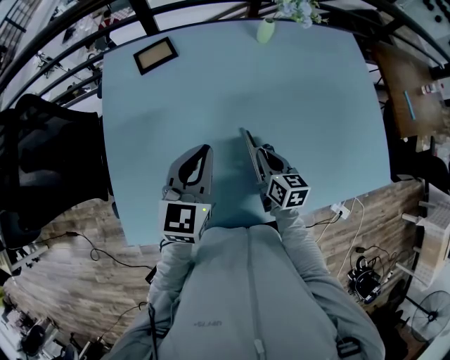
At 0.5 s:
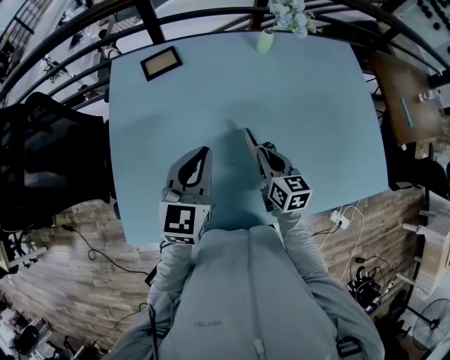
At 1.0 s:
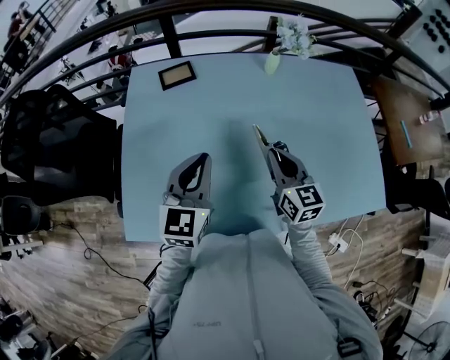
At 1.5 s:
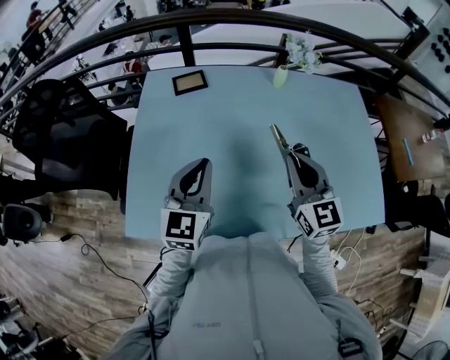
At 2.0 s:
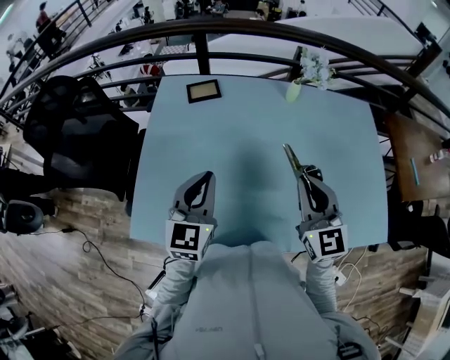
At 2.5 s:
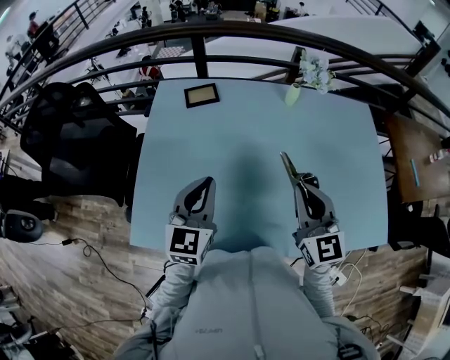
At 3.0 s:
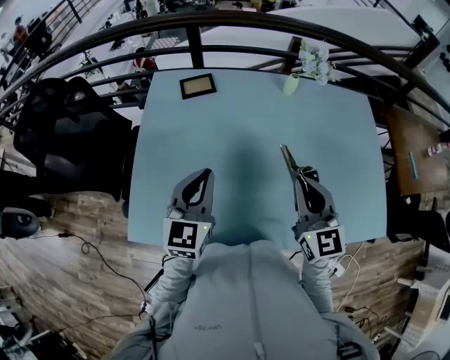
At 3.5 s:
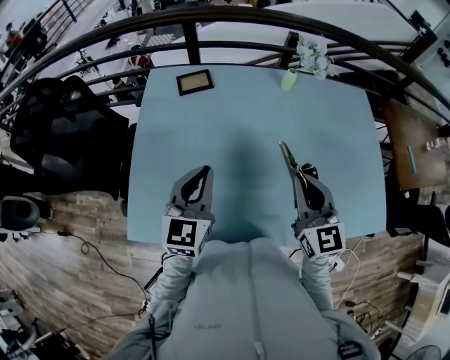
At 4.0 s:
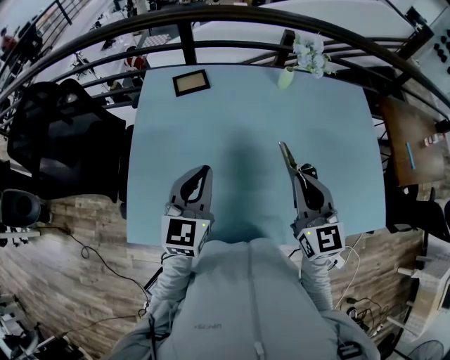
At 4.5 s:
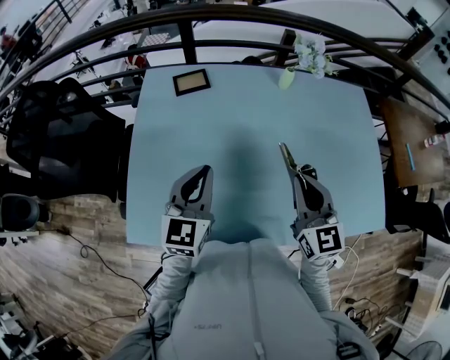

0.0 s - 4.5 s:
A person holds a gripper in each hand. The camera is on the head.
0.0 s - 2.0 s: The left gripper is displaced upward and backward by about 10 cm. The right gripper is displaced upward by approximately 25 cm, and rotates around the line of its fingers by approximately 40 degrees, counterclockwise from behind.
2.0 s - 4.5 s: The grippers make only small movements.

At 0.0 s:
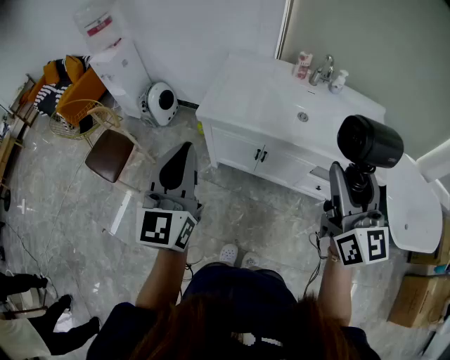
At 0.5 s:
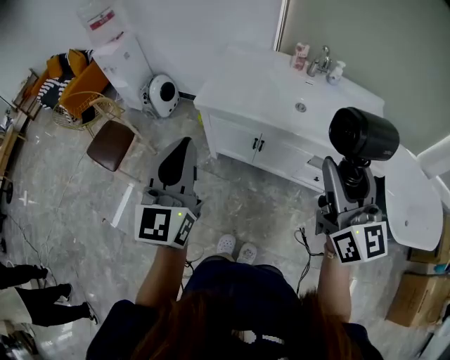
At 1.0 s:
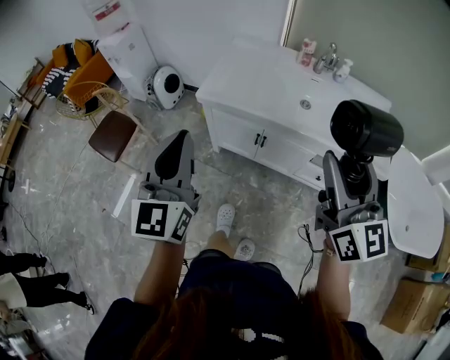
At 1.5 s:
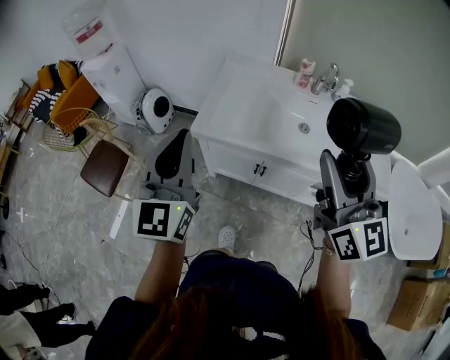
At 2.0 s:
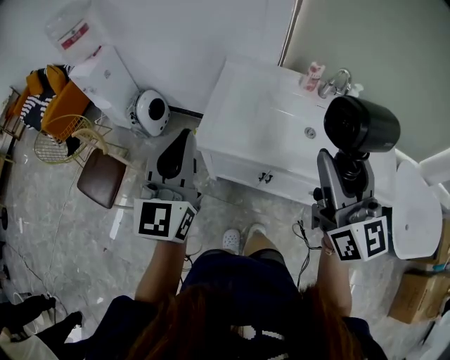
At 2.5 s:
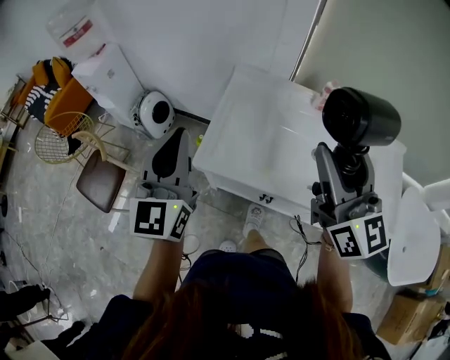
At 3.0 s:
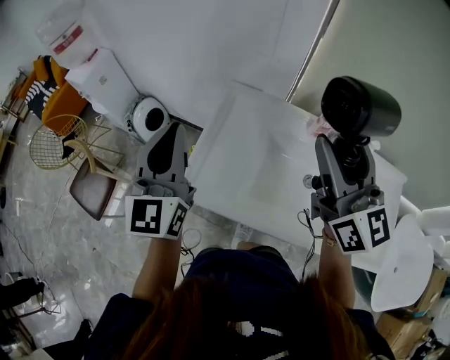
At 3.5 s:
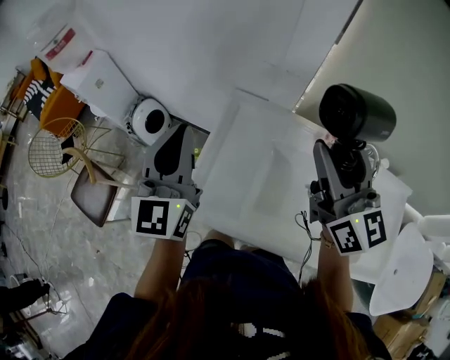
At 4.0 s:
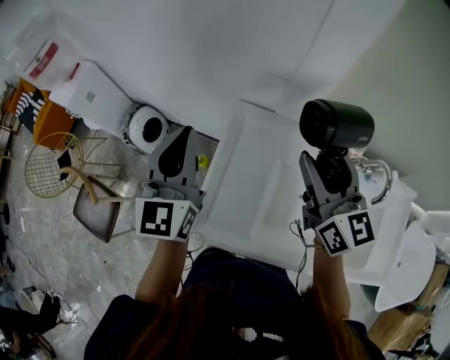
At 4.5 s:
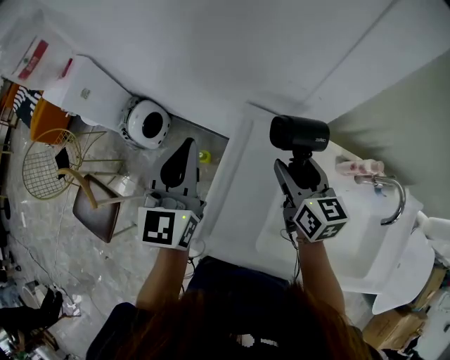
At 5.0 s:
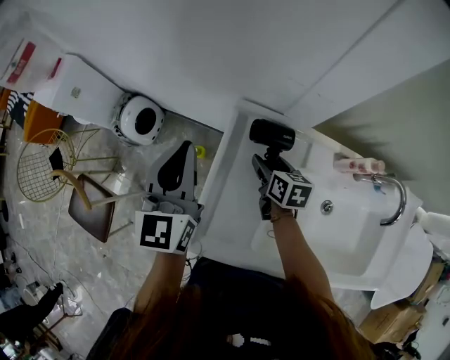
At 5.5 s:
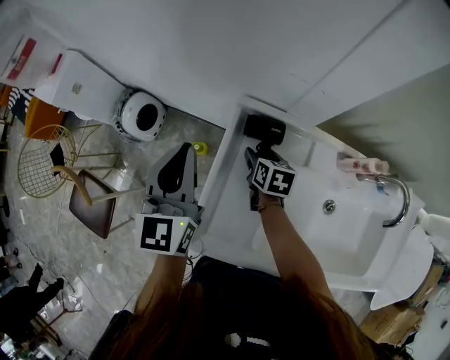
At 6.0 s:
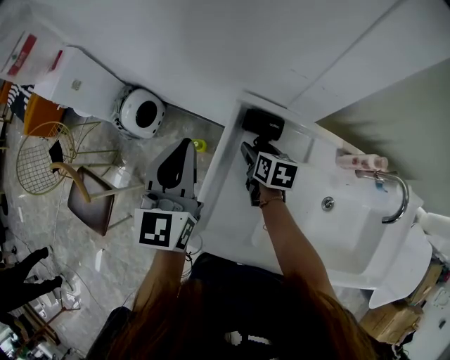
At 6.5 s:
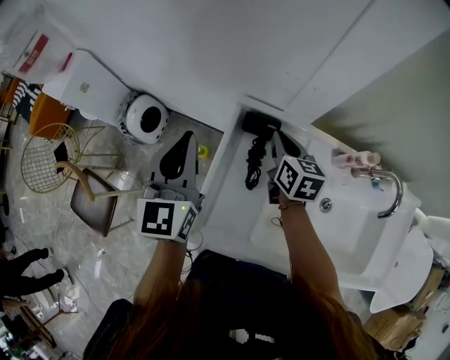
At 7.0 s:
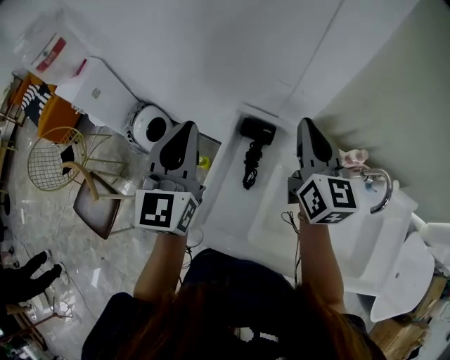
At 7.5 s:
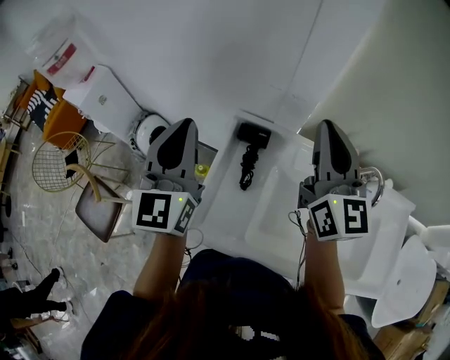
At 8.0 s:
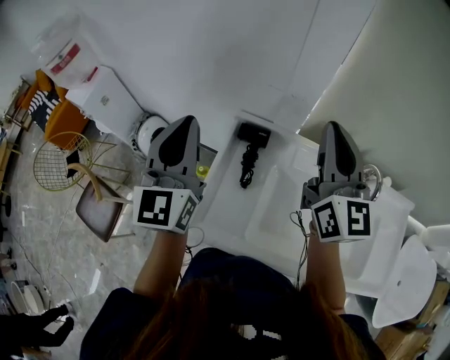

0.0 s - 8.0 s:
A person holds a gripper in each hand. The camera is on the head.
0.0 s - 2.0 s: Both grippers move forward, about 25 cm.
2.0 s - 4.0 s: The two grippers travel together, forward, approximately 50 cm.
4.0 s - 6.0 s: The left gripper heads downward and forward, covering approximately 10 cm; the right gripper moves downward, some 35 cm, and tips its fingers downward by some 40 degrees.
6.0 s - 8.0 s: The right gripper heads upward, covering roughly 40 cm, tilts its fingers about 60 degrees upward, and closes up. Meanwhile the left gripper shifts about 20 cm upward and backward.

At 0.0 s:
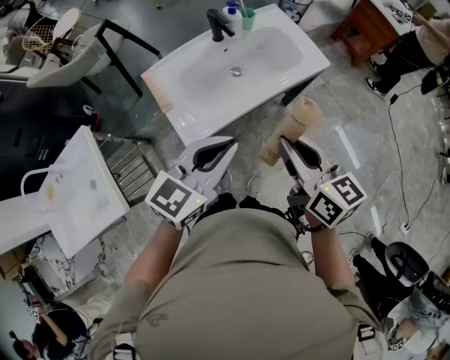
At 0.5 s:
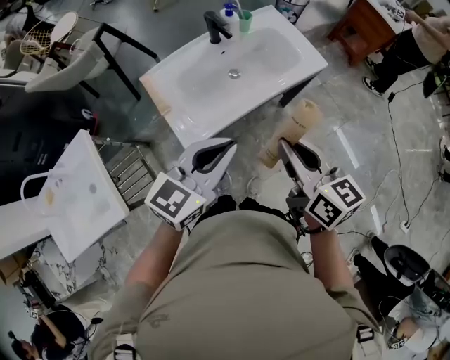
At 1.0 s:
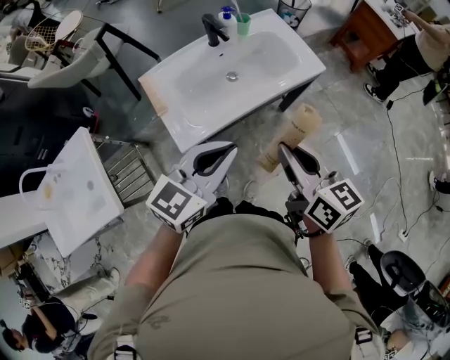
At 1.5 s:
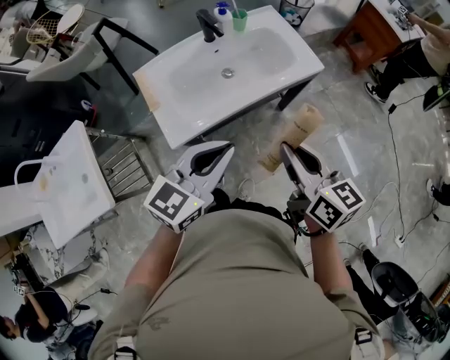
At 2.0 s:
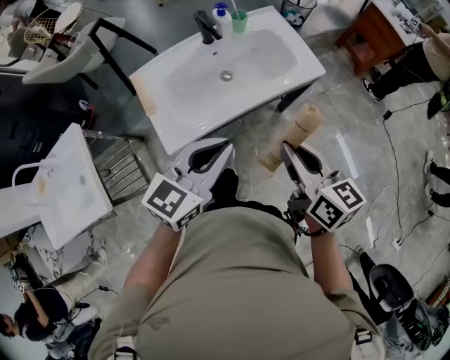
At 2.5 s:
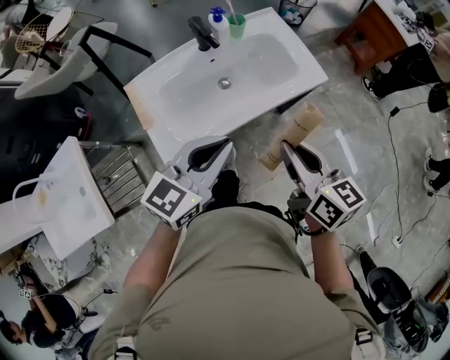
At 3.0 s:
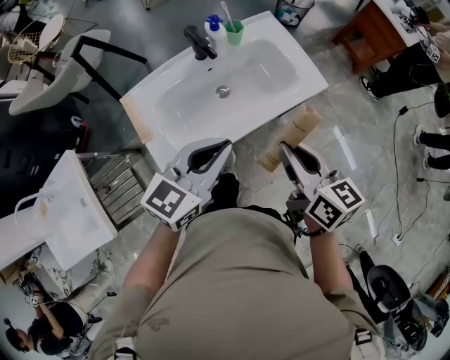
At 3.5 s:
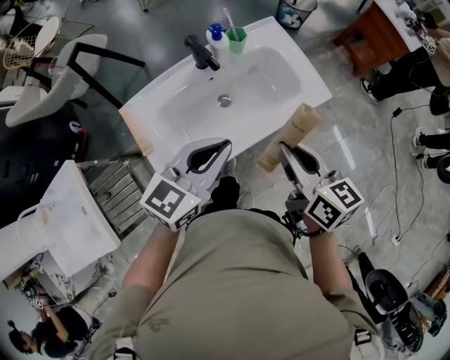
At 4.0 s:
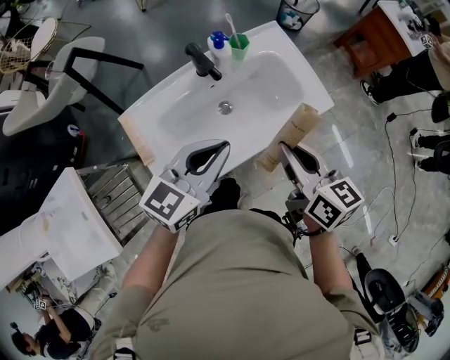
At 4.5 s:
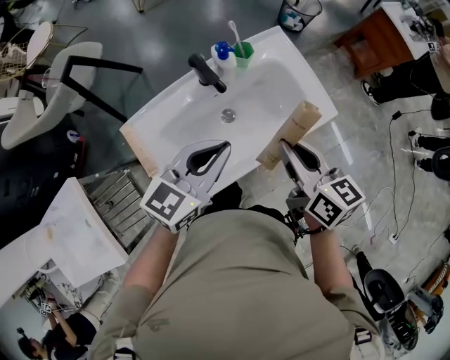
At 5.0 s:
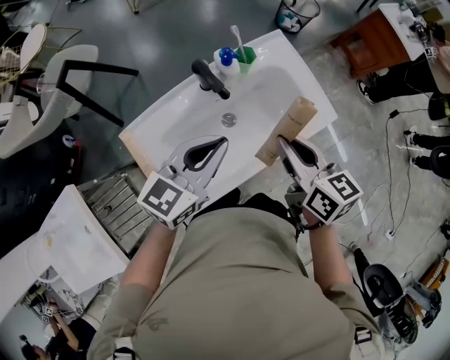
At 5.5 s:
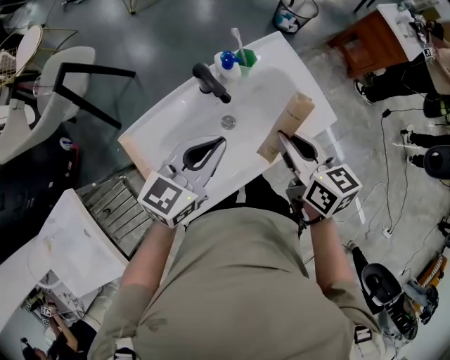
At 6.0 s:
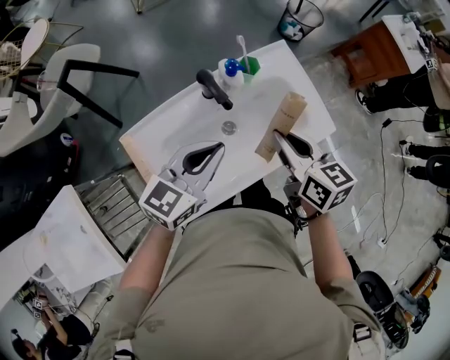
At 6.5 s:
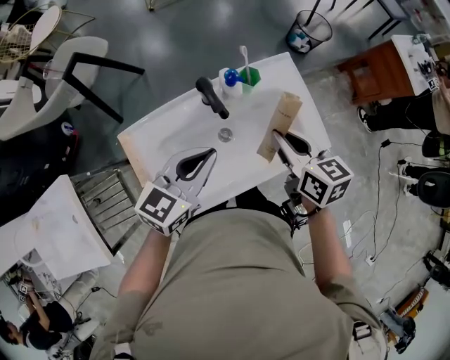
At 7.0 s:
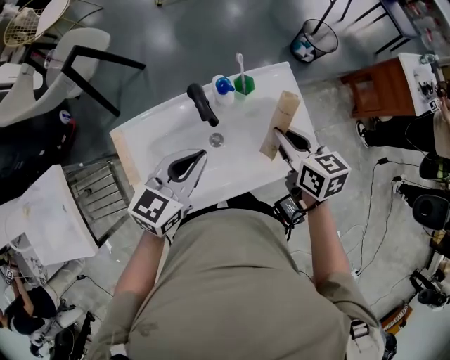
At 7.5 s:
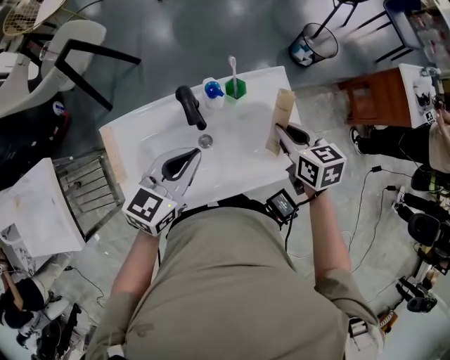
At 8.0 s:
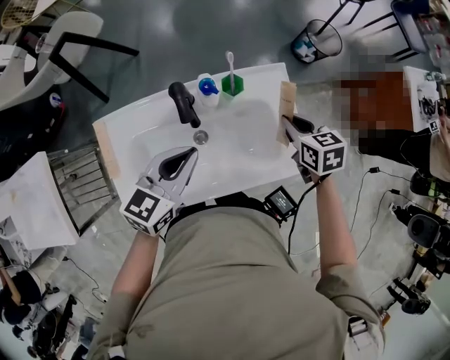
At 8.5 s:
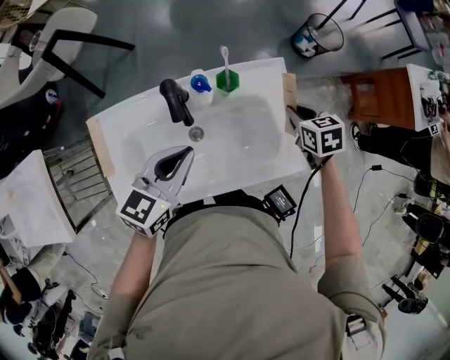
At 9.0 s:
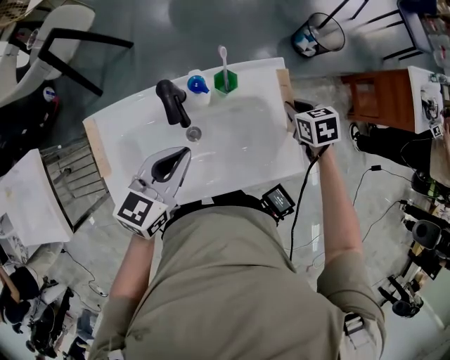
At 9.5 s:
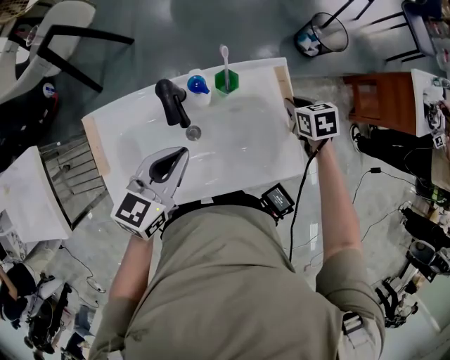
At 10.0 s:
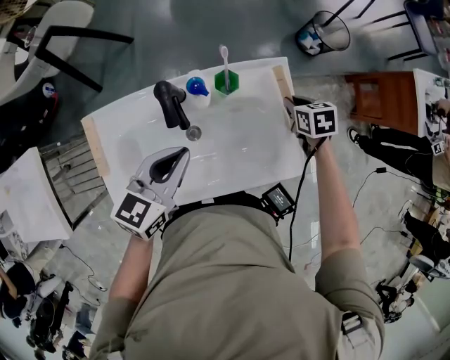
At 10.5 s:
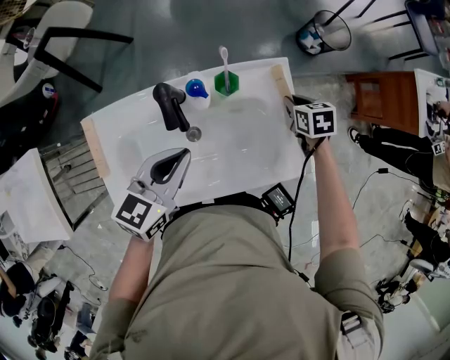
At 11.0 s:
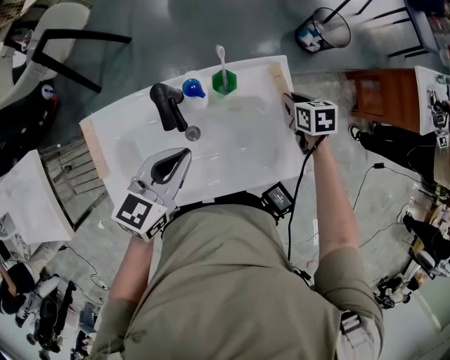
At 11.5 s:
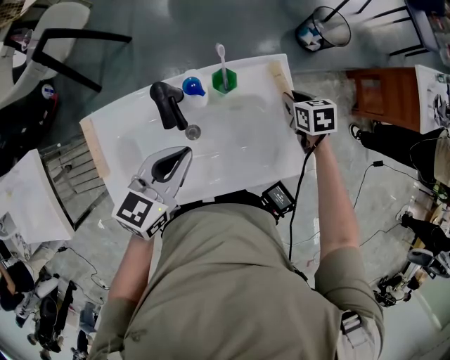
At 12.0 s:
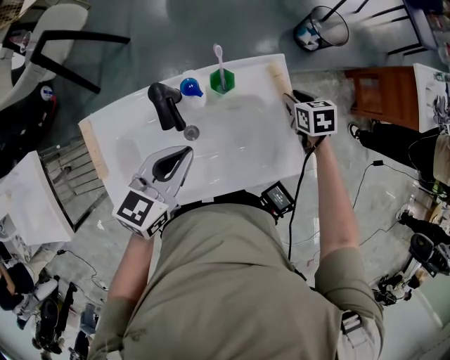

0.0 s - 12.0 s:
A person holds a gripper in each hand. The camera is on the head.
0.0 s - 2.0 s: The grippers both shift to the right by some 5 cm.
2.0 s - 4.0 s: Both grippers move forward, approximately 20 cm.
4.0 s - 6.0 s: The two grippers go some 10 cm forward and to the left.
6.0 s - 8.0 s: The left gripper changes place by approximately 5 cm, and turns by approximately 20 degrees, while the right gripper is displaced forward, to the right and downward by roughly 20 cm, and changes its angle by approximately 30 degrees.
8.0 s - 10.0 s: The right gripper shifts approximately 15 cm downward and forward.
10.0 s - 12.0 s: The grippers stay close to where they were, moving slightly.

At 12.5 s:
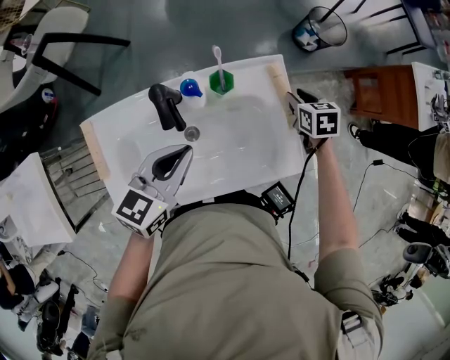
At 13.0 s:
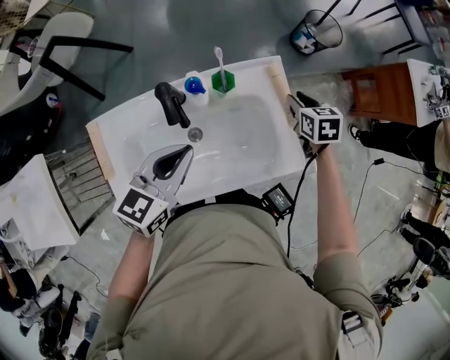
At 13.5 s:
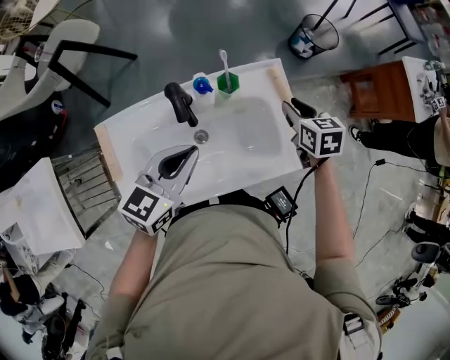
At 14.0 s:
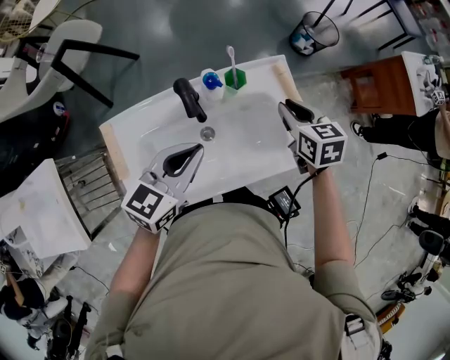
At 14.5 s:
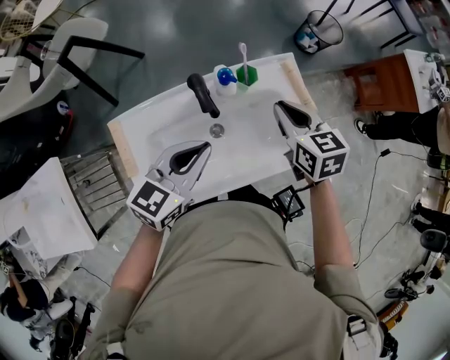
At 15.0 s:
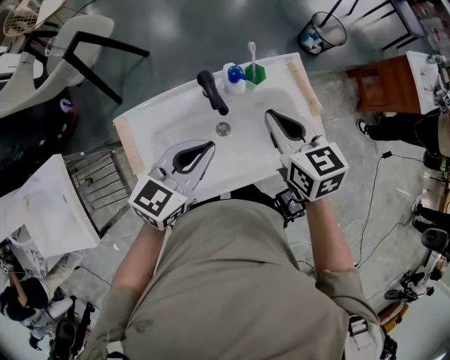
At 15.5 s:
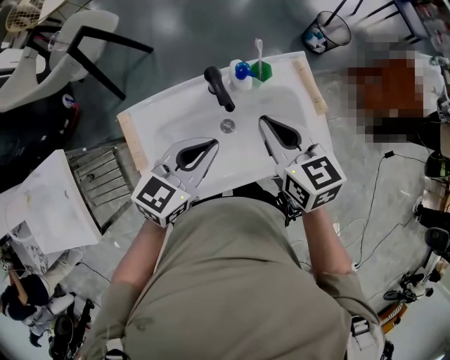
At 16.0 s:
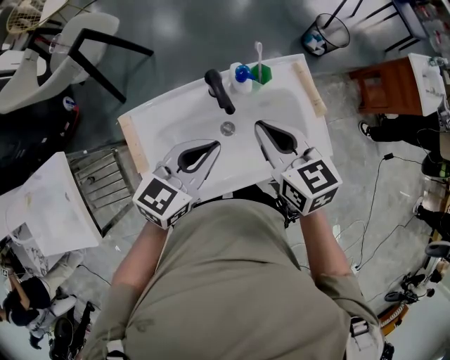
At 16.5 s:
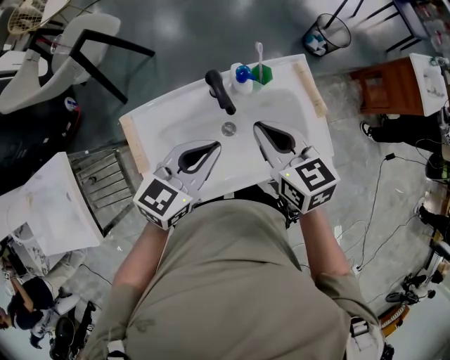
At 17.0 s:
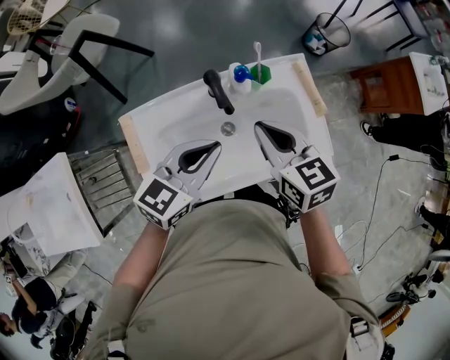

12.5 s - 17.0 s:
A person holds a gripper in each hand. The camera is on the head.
12.5 s - 14.5 s: The right gripper shifts some 25 cm upward, to the left and backward, and rotates about 20 degrees; the left gripper moves roughly 5 cm.
14.5 s - 17.0 s: The right gripper travels to the left and backward by some 10 cm.
